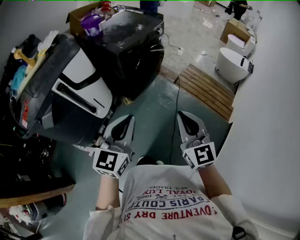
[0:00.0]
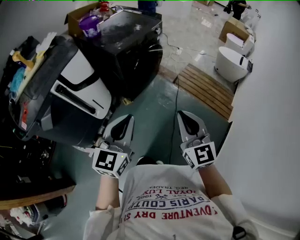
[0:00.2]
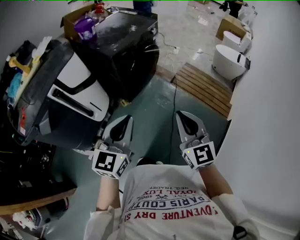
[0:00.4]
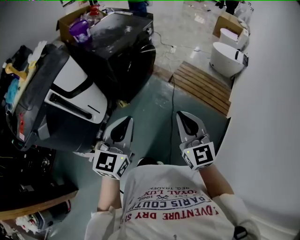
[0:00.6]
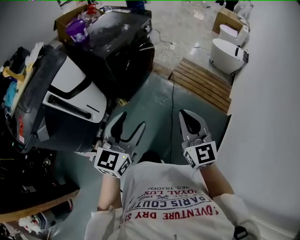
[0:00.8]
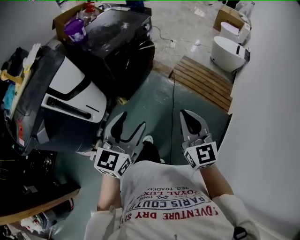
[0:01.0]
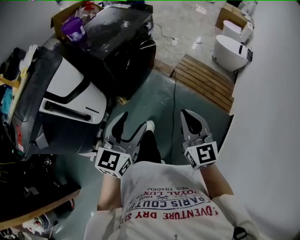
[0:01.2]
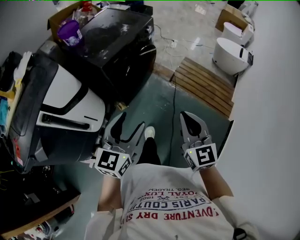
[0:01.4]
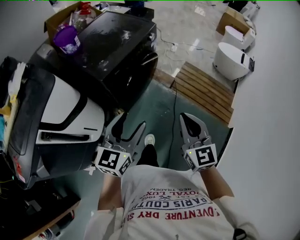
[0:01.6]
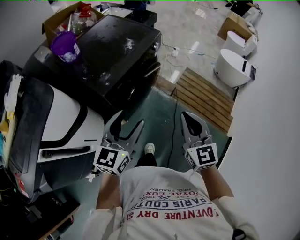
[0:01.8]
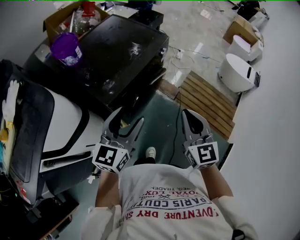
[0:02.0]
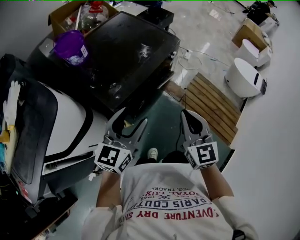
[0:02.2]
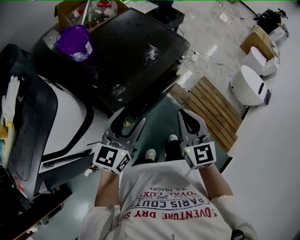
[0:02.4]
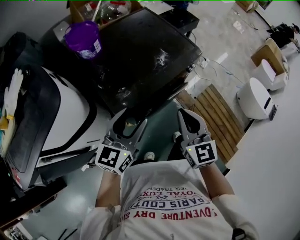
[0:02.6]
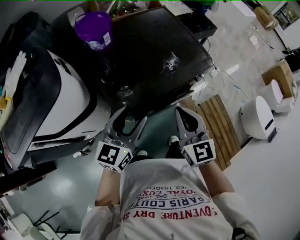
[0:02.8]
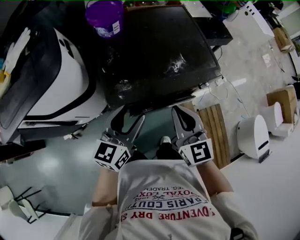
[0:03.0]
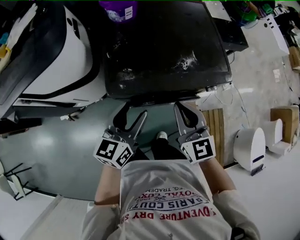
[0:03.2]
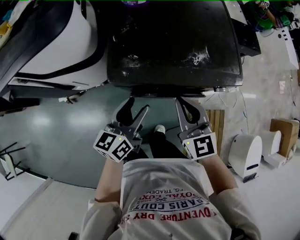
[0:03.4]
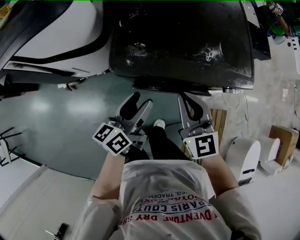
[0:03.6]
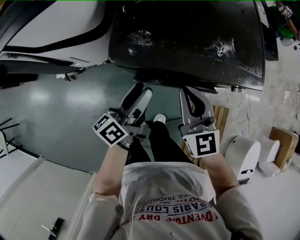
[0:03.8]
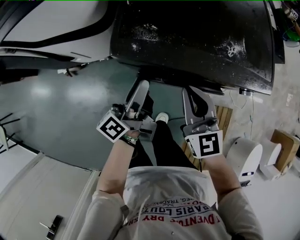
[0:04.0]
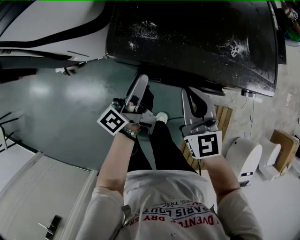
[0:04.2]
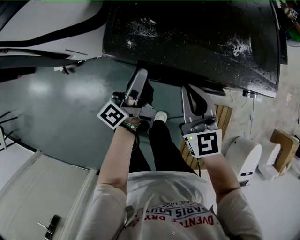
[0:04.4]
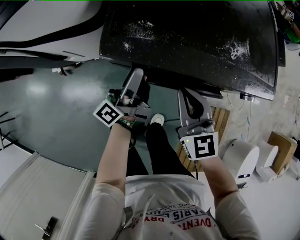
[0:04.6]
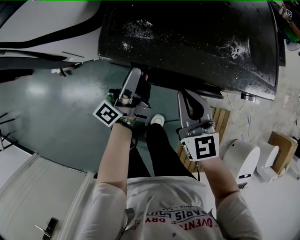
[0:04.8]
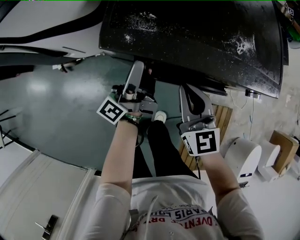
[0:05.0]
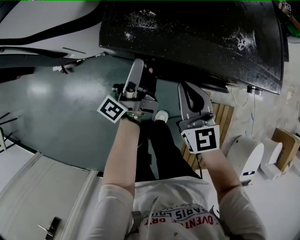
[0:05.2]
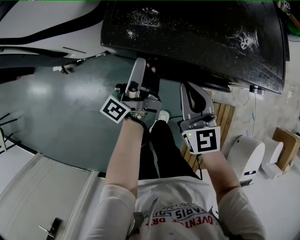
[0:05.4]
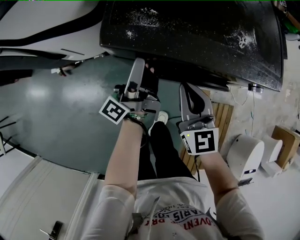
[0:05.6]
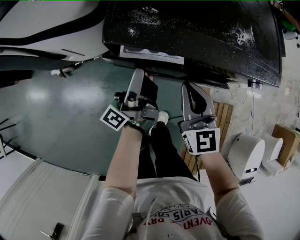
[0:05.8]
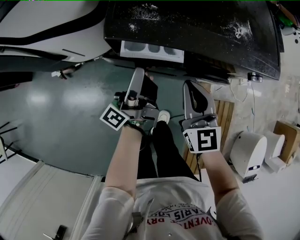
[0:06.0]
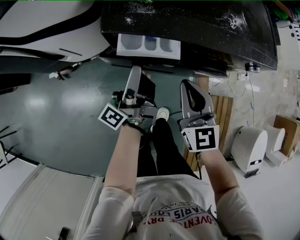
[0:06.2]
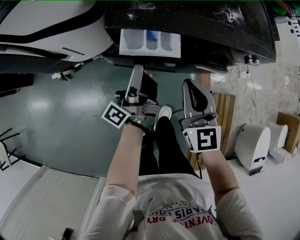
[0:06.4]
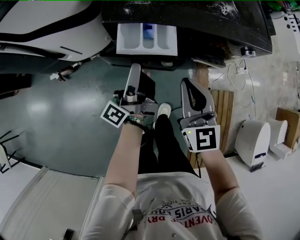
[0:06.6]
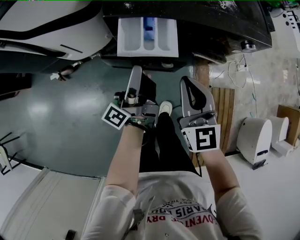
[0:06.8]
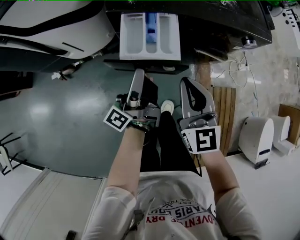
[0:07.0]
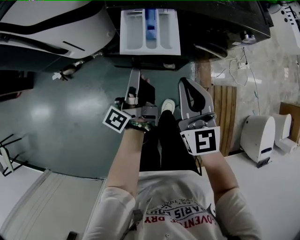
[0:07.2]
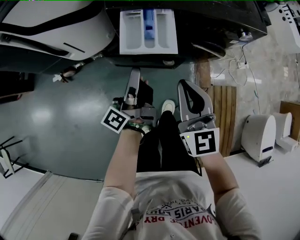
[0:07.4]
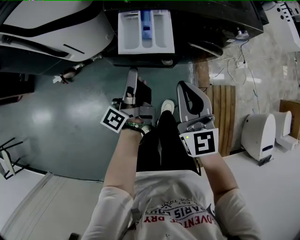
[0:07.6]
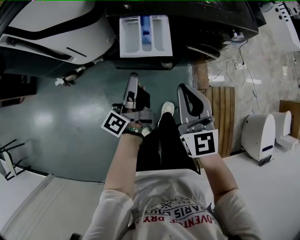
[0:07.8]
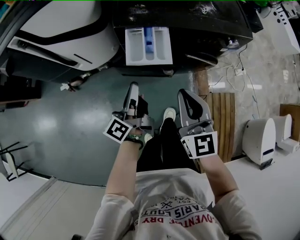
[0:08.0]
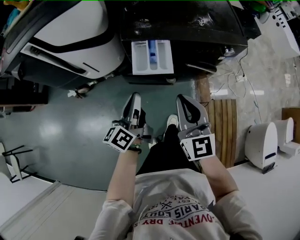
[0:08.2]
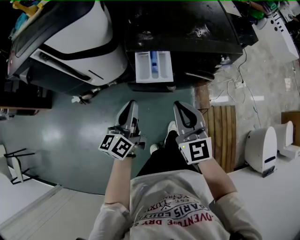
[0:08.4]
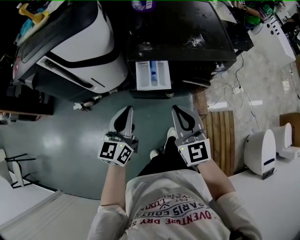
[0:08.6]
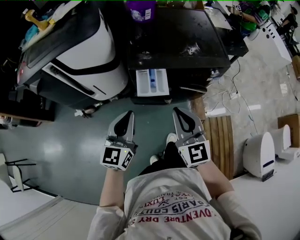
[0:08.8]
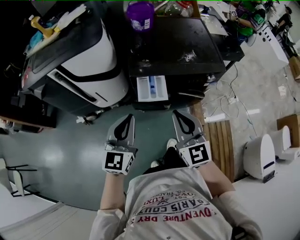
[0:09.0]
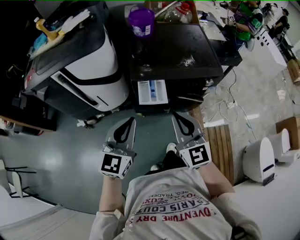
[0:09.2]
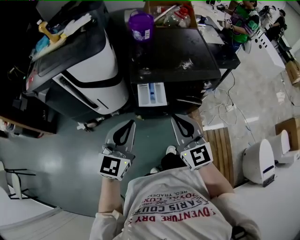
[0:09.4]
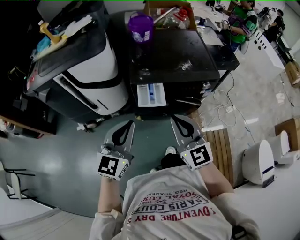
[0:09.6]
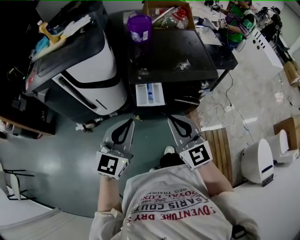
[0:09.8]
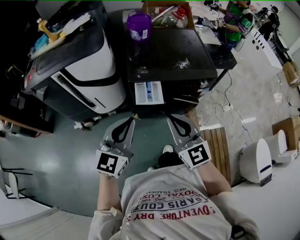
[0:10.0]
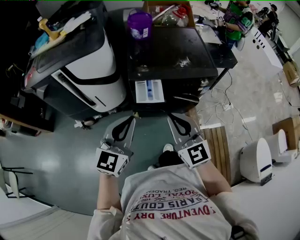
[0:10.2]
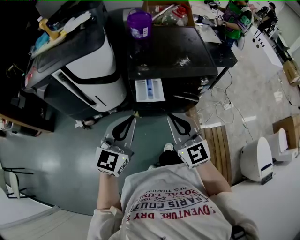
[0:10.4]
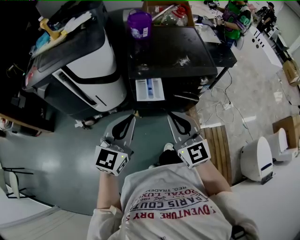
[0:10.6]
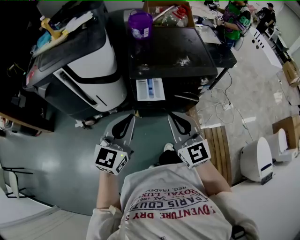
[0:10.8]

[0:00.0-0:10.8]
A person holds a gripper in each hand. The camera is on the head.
0:00.0 to 0:01.6: The two grippers go roughly 25 cm forward. The left gripper opens.
0:01.6 to 0:03.0: The left gripper ends up some 35 cm from where it was, and turns by roughly 40 degrees. Meanwhile the right gripper shifts by some 40 cm, and turns by about 40 degrees.
0:03.0 to 0:04.6: Both grippers move downward, roughly 20 cm. The left gripper turns by approximately 70 degrees; the right gripper rotates approximately 20 degrees.
0:04.6 to 0:06.2: The two grippers go some 5 cm backward.
0:06.2 to 0:07.8: The right gripper goes roughly 15 cm backward and upward, while the left gripper heads backward, covering roughly 10 cm, and closes.
0:07.8 to 0:09.2: The grippers both shift upward by some 25 cm. The left gripper rotates around the line of its fingers by about 80 degrees, clockwise from behind.
0:09.2 to 0:10.8: The right gripper moves some 5 cm.

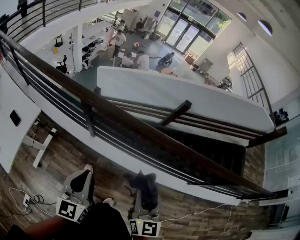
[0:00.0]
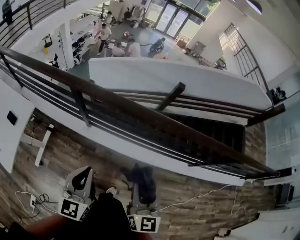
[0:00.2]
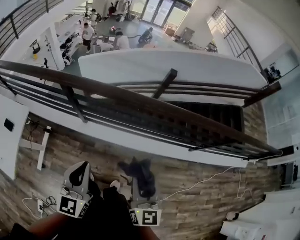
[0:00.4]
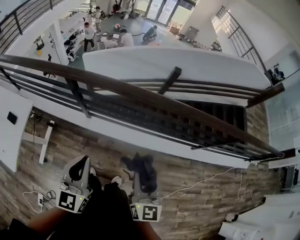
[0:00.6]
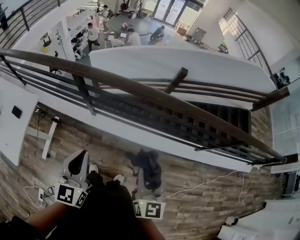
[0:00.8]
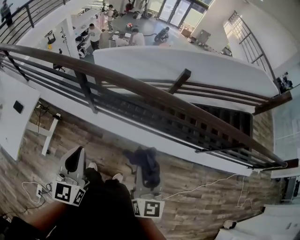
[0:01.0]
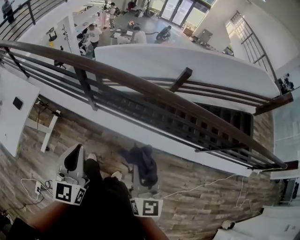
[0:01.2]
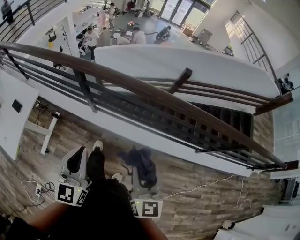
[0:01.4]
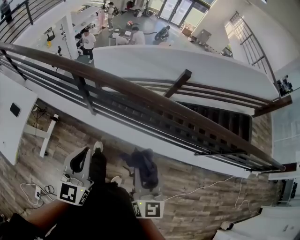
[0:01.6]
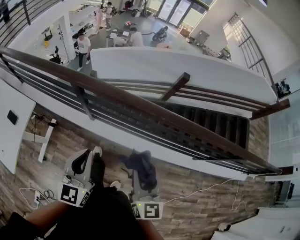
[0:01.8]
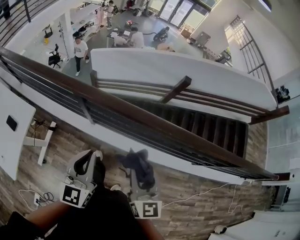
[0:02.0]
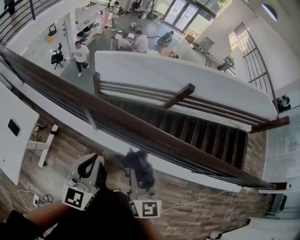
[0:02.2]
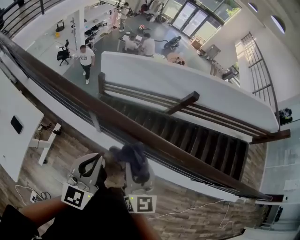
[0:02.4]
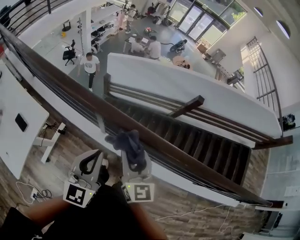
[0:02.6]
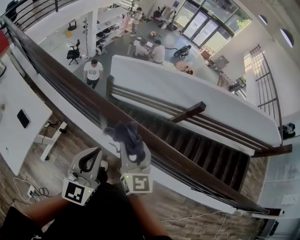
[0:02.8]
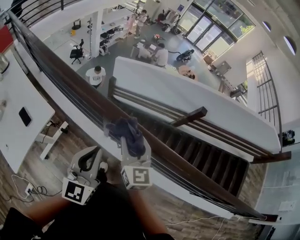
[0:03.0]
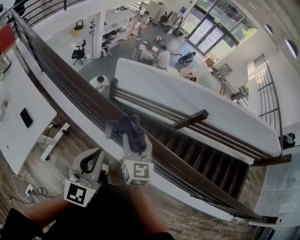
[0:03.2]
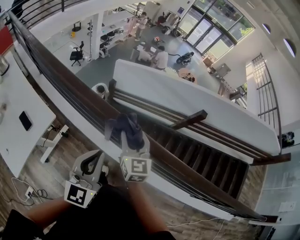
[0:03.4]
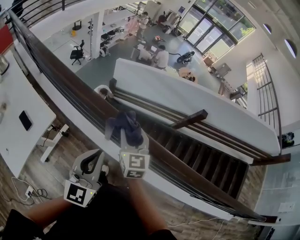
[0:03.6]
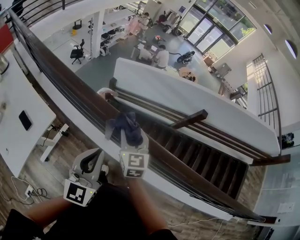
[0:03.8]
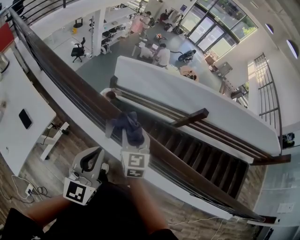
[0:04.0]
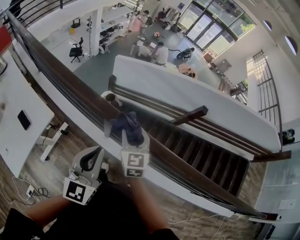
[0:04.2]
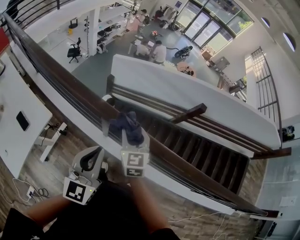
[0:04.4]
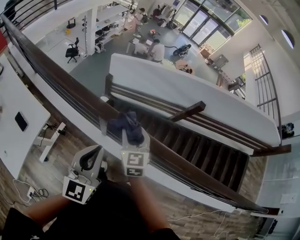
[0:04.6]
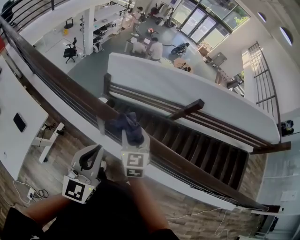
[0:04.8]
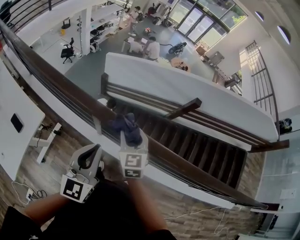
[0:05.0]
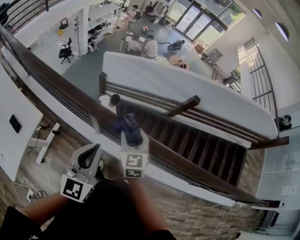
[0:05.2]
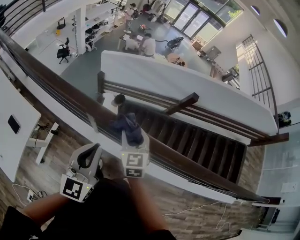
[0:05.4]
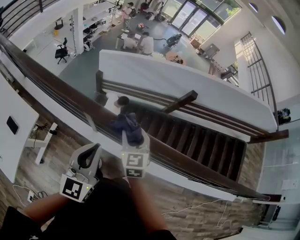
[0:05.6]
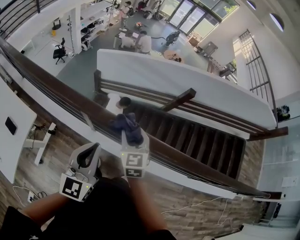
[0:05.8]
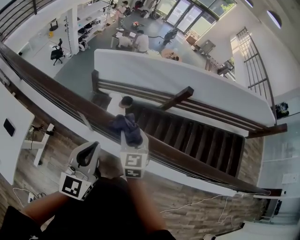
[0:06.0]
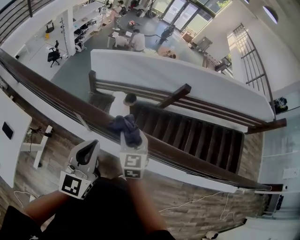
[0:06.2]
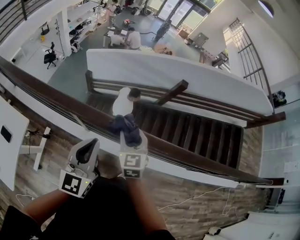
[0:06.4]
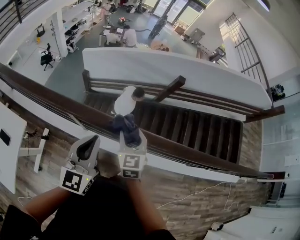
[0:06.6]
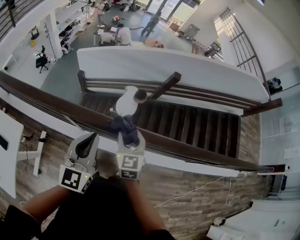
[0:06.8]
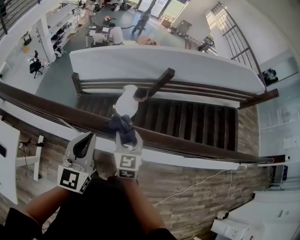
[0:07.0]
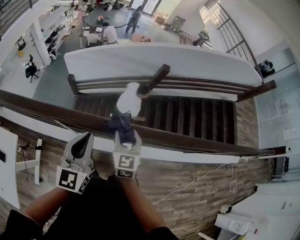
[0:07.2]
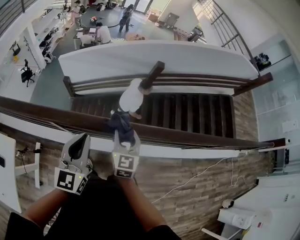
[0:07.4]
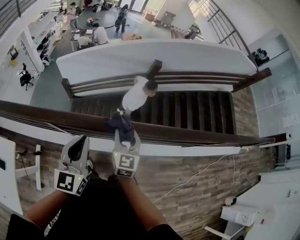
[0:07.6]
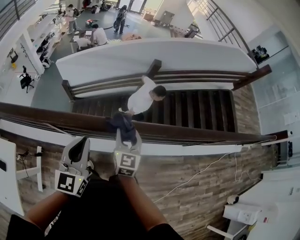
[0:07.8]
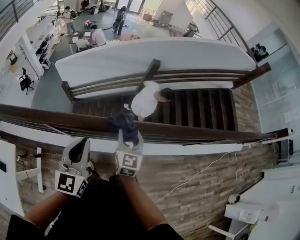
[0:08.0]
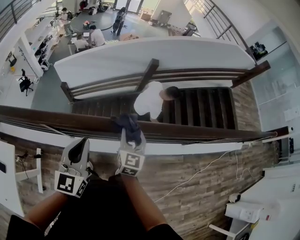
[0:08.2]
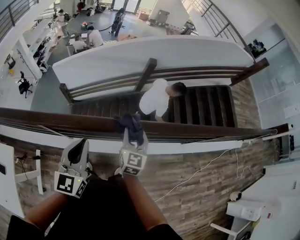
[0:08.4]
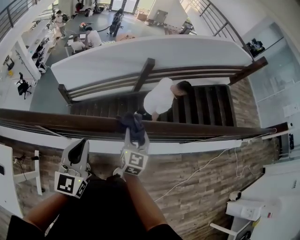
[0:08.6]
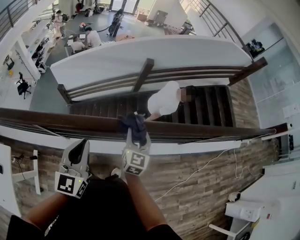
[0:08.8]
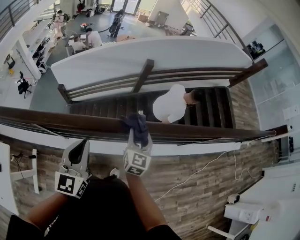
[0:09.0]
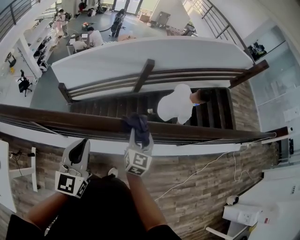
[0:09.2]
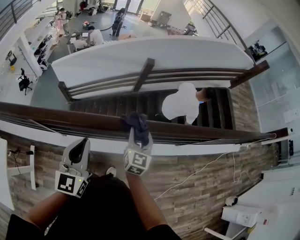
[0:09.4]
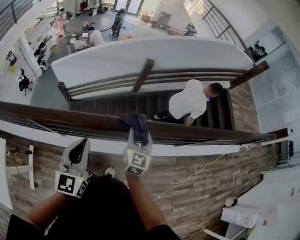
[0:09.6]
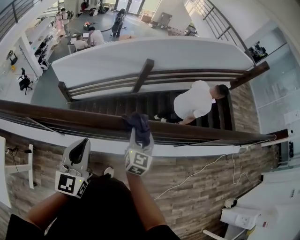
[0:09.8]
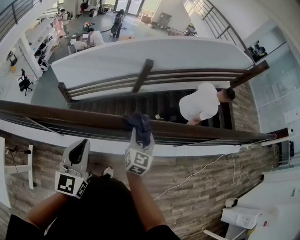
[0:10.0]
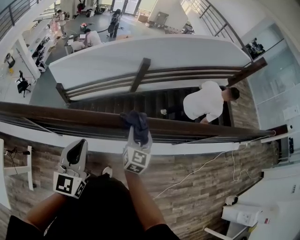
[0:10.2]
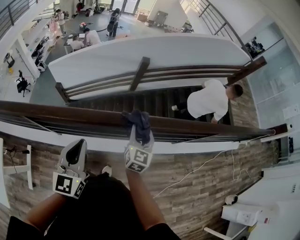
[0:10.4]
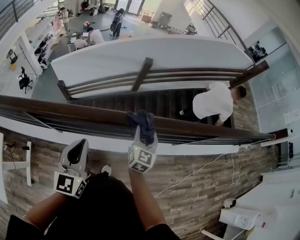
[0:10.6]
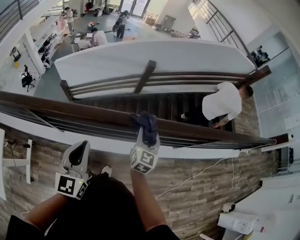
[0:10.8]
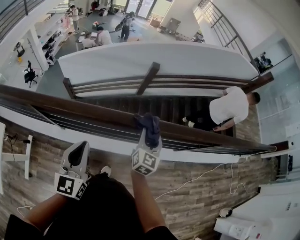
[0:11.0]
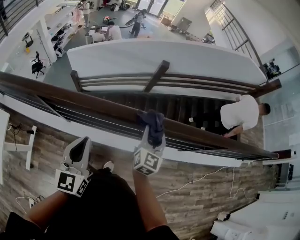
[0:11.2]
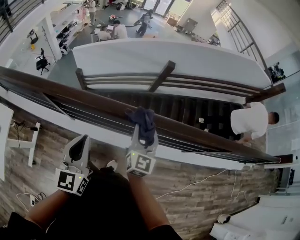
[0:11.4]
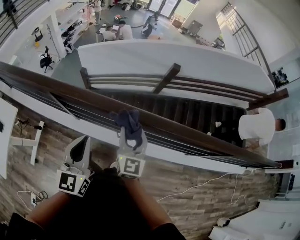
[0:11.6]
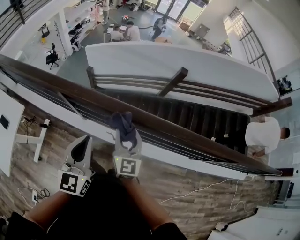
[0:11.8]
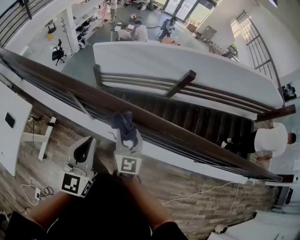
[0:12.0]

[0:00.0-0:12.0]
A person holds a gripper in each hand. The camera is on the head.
0:01.6 to 0:03.0: The left gripper goes about 20 cm forward and to the left. The right gripper goes roughly 35 cm forward and to the left, and rotates about 20 degrees.
0:03.0 to 0:04.4: The right gripper moves downward, some 5 cm.
0:04.4 to 0:06.0: The grippers both shift to the right by some 10 cm.
0:06.0 to 0:07.6: The right gripper moves to the right, about 15 cm, and rotates some 30 degrees. Meanwhile the left gripper moves to the right, about 10 cm.
0:07.6 to 0:09.0: The right gripper moves to the right, some 15 cm. Meanwhile the left gripper moves to the right, roughly 10 cm.
0:09.0 to 0:10.4: The two grippers go approximately 5 cm to the right.
0:10.4 to 0:12.0: The left gripper goes roughly 15 cm to the left, while the right gripper shifts roughly 30 cm to the left, and rotates approximately 30 degrees.

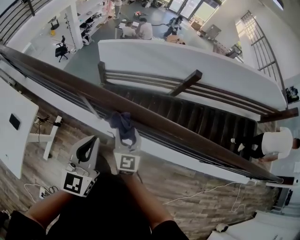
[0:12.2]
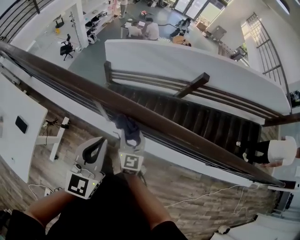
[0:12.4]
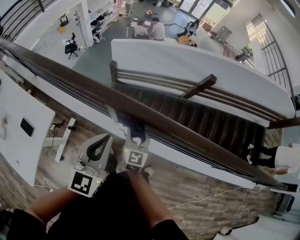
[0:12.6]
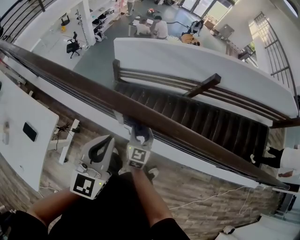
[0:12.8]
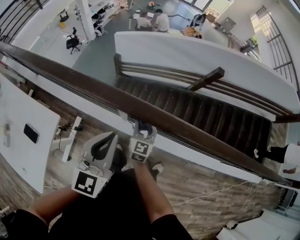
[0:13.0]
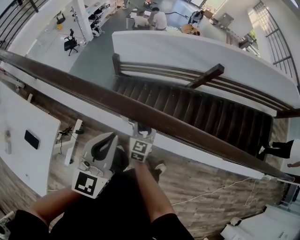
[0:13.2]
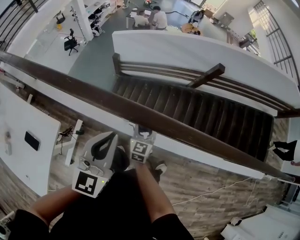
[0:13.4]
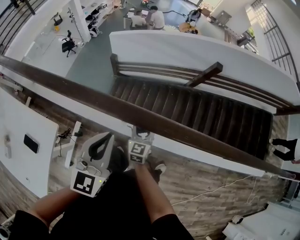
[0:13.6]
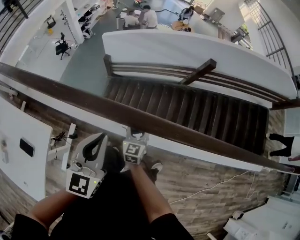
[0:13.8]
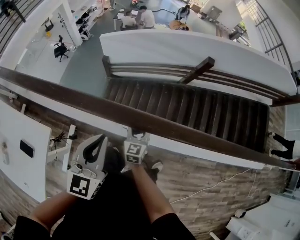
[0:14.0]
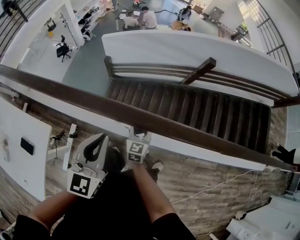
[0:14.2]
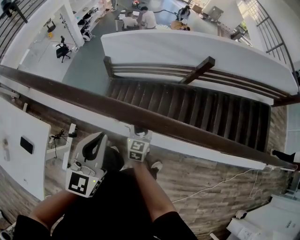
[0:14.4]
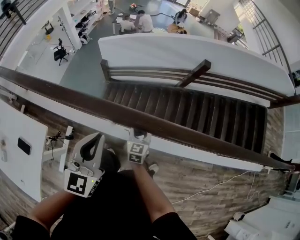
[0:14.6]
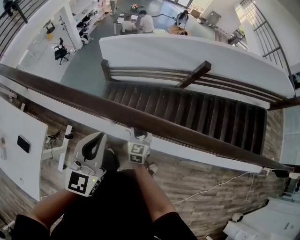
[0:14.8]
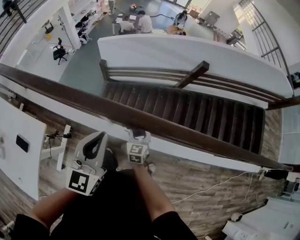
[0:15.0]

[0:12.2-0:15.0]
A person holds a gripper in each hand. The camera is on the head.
0:12.2 to 0:13.6: The left gripper moves to the left and forward, roughly 15 cm. The right gripper heads downward, to the left and forward, covering about 20 cm.
0:13.6 to 0:15.0: Both grippers move to the right, roughly 5 cm.
